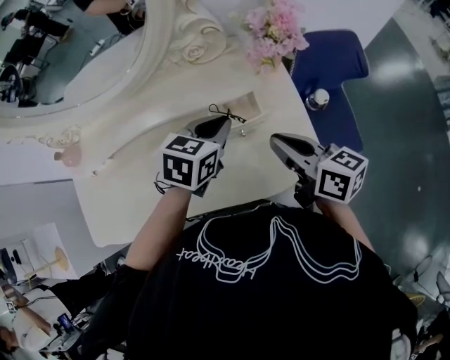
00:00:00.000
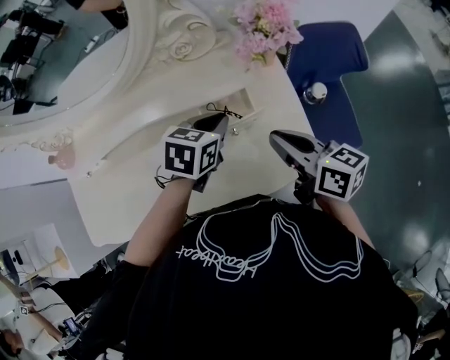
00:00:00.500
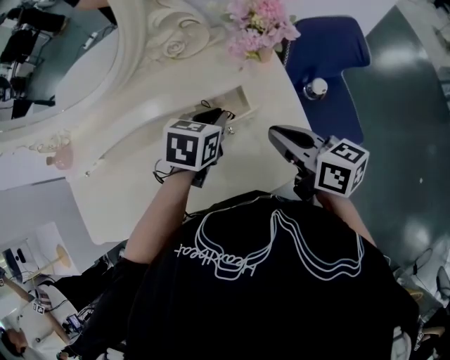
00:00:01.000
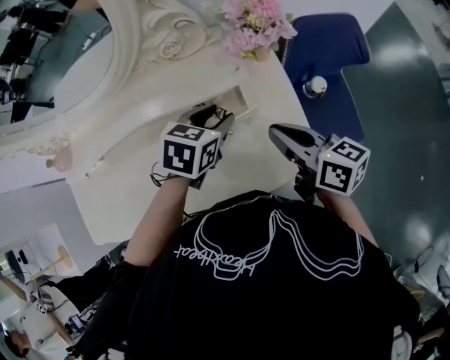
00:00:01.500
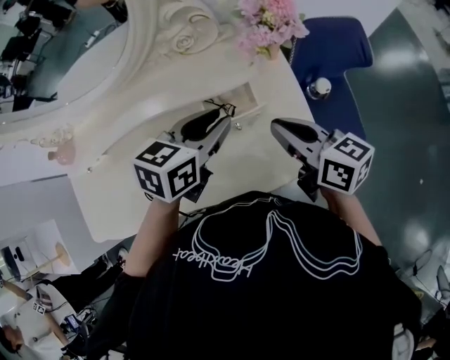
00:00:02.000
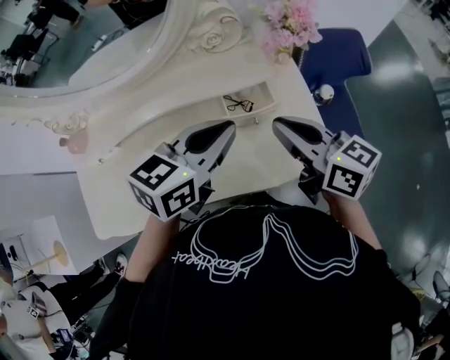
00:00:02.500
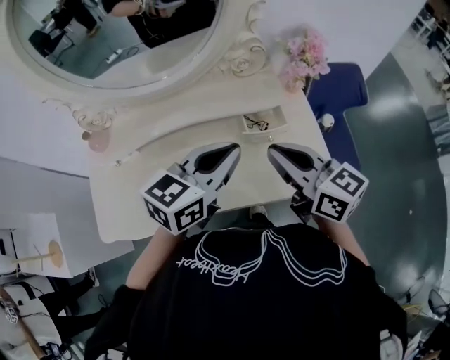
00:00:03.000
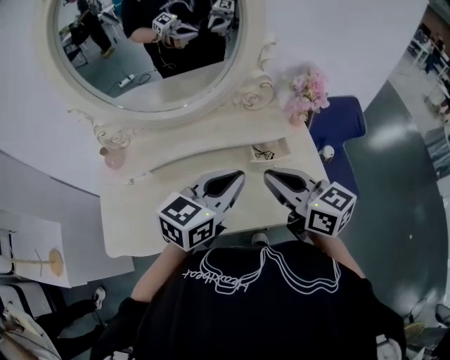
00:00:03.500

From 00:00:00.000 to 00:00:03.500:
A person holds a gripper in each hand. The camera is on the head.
From 00:00:00.000 to 00:00:02.000: The grippers make only small movements.
From 00:00:02.000 to 00:00:03.500: The left gripper heads upward, backward and to the left, covering some 20 cm, and closes, while the right gripper shifts roughly 20 cm to the left, upward and backward.

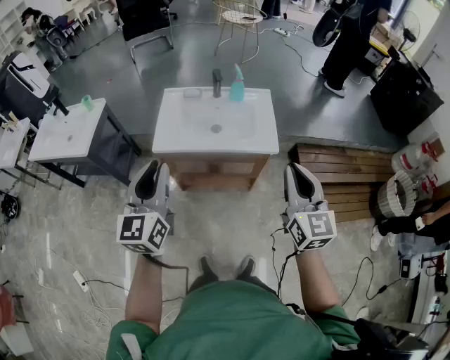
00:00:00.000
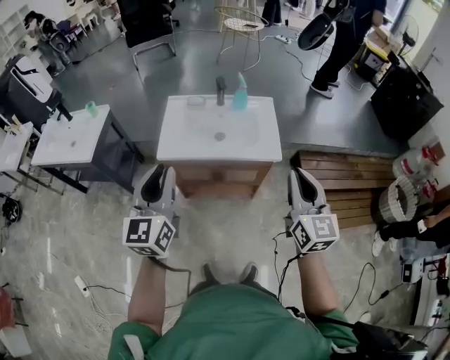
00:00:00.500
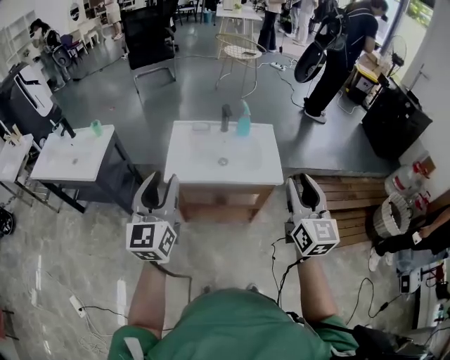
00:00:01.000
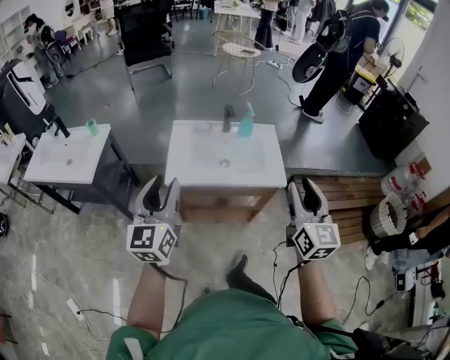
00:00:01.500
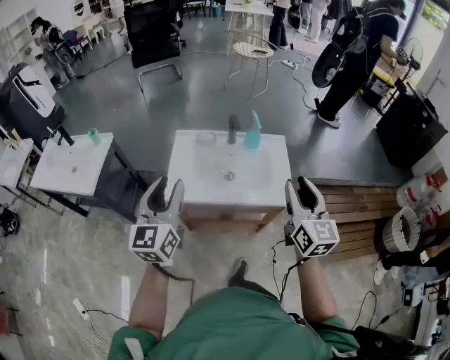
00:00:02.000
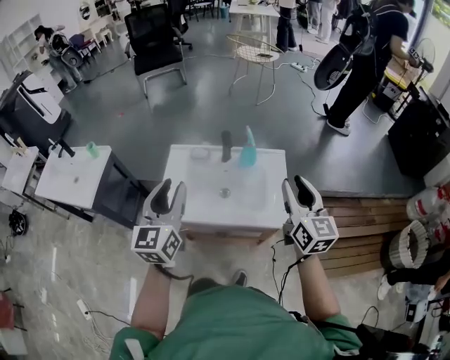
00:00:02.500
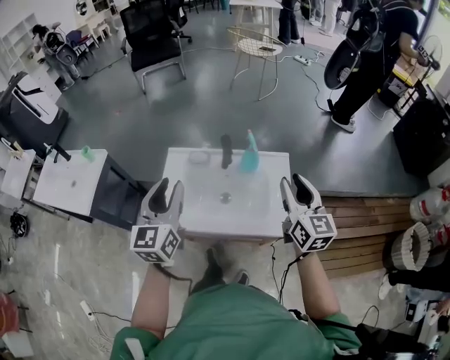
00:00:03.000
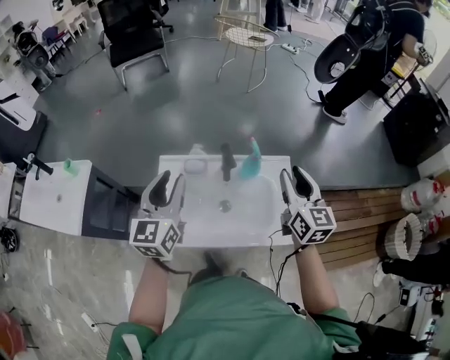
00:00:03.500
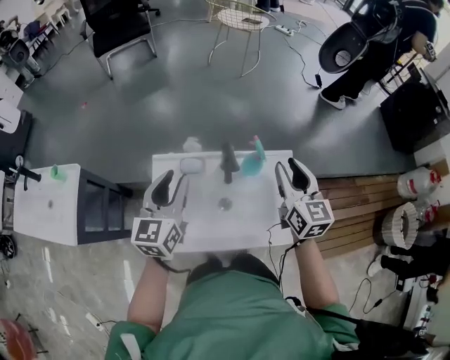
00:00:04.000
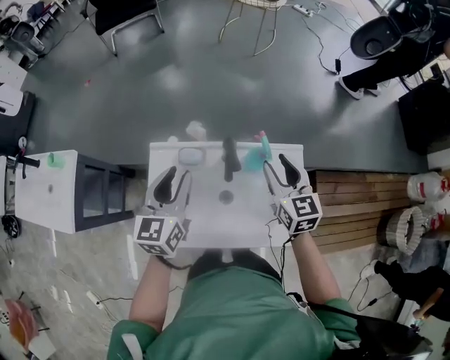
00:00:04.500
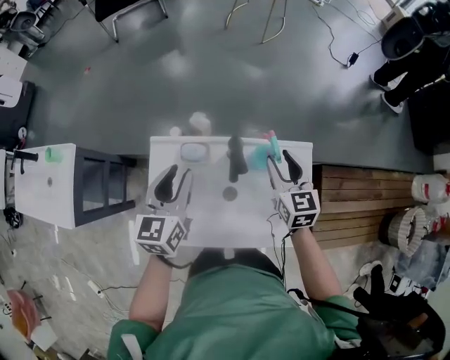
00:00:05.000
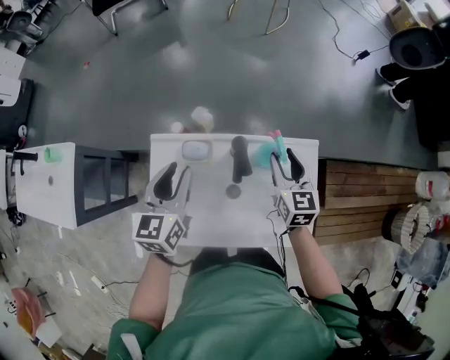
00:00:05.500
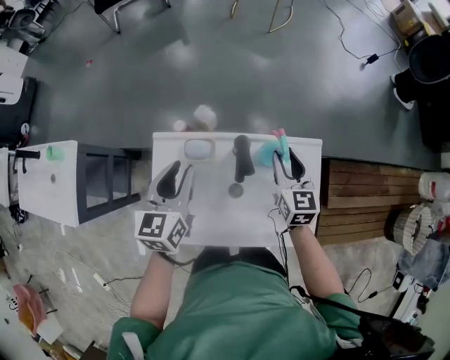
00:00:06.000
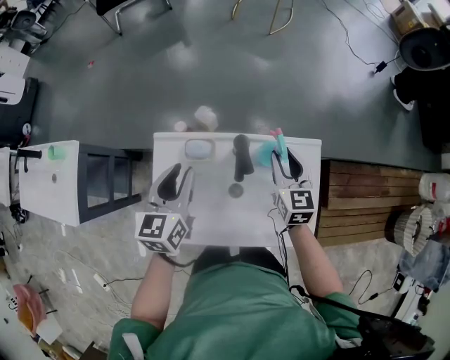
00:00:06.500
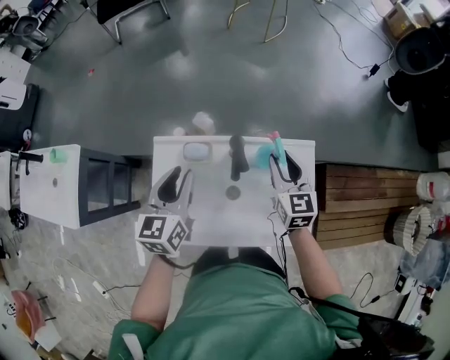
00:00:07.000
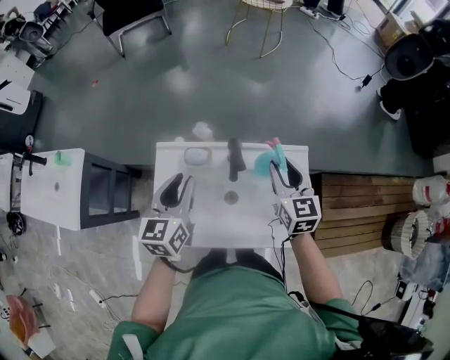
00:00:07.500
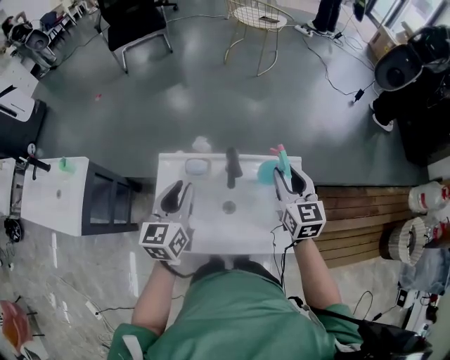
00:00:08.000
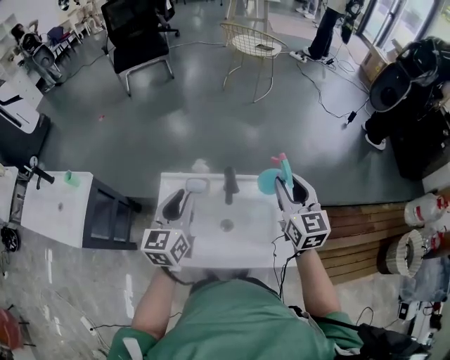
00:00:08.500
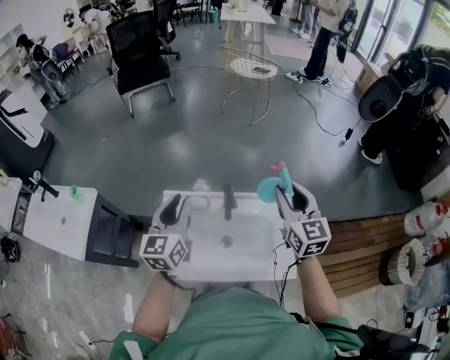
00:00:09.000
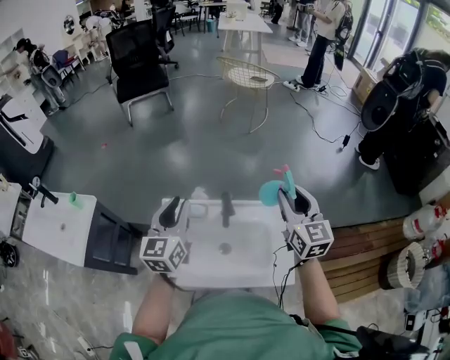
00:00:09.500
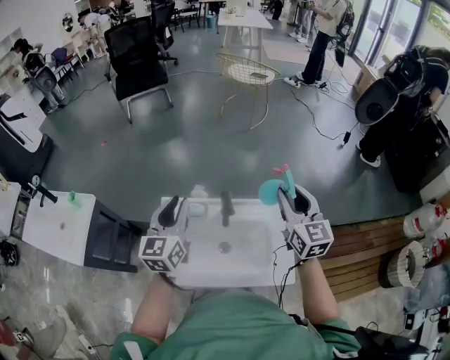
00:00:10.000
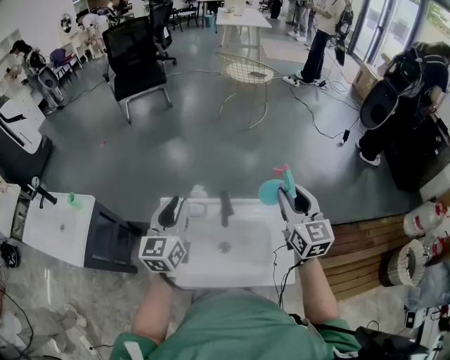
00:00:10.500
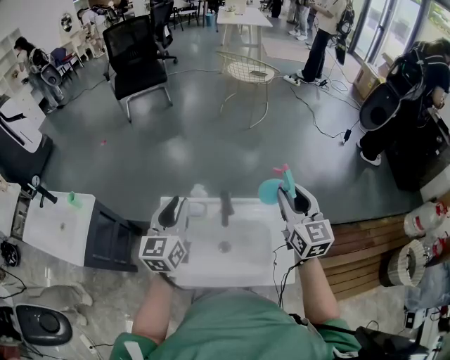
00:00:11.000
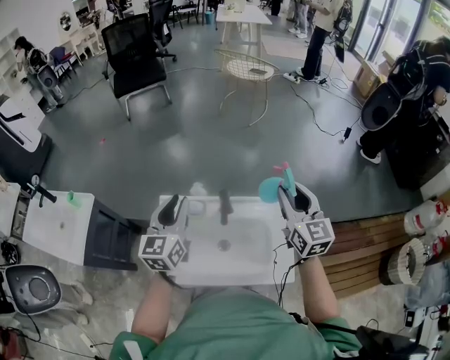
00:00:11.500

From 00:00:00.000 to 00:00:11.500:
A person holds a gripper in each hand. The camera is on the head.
From 00:00:00.000 to 00:00:02.000: Both grippers move forward, approximately 15 cm. The right gripper opens its fingers.
From 00:00:02.000 to 00:00:04.000: Both grippers move forward, roughly 40 cm.
From 00:00:04.000 to 00:00:06.000: The left gripper goes roughly 15 cm downward and forward. The right gripper moves downward and forward, about 20 cm.
From 00:00:06.000 to 00:00:07.500: The right gripper is displaced upward and backward by some 10 cm. Meanwhile the left gripper shifts some 5 cm backward.
From 00:00:07.500 to 00:00:09.500: The two grippers go some 15 cm upward.
From 00:00:09.500 to 00:00:11.500: The grippers make only small movements.

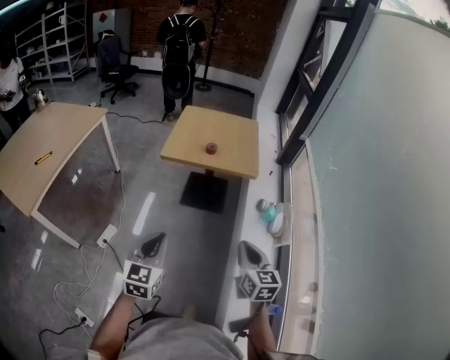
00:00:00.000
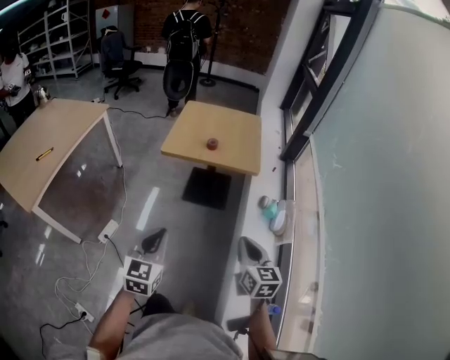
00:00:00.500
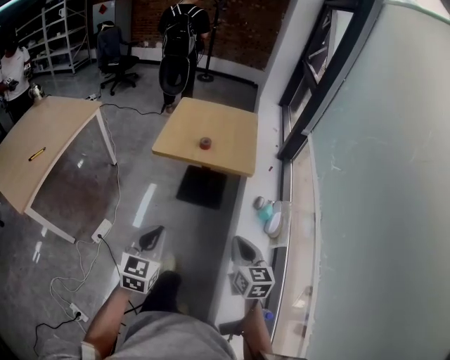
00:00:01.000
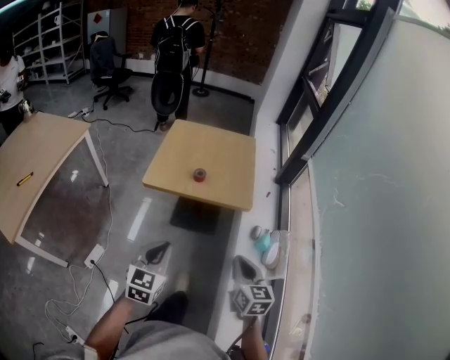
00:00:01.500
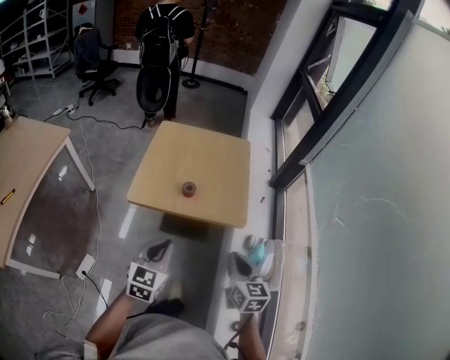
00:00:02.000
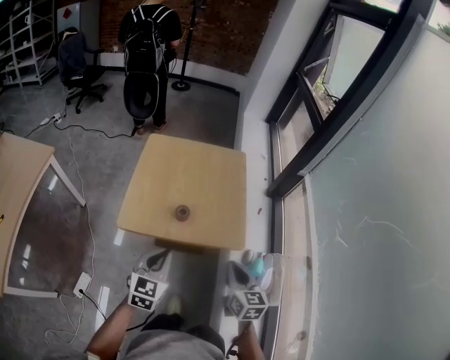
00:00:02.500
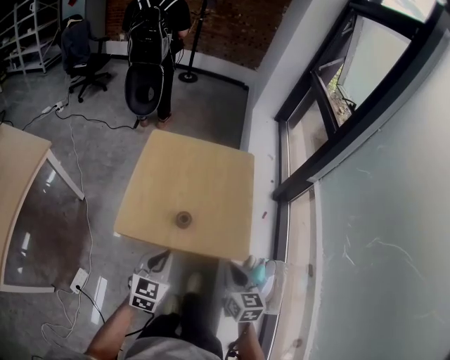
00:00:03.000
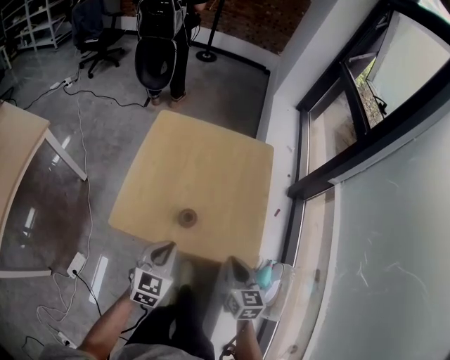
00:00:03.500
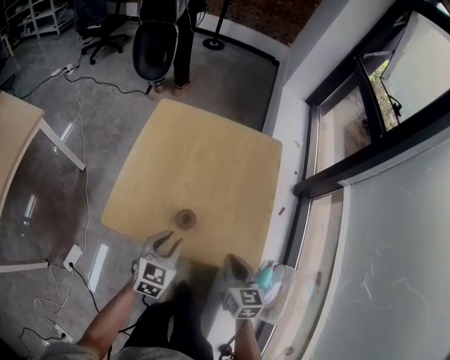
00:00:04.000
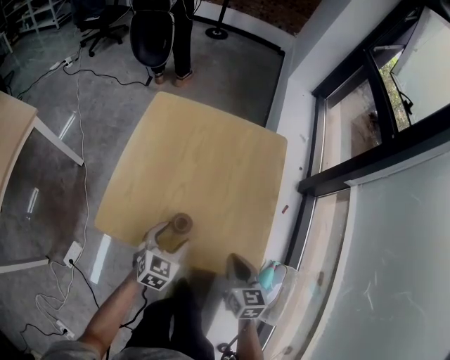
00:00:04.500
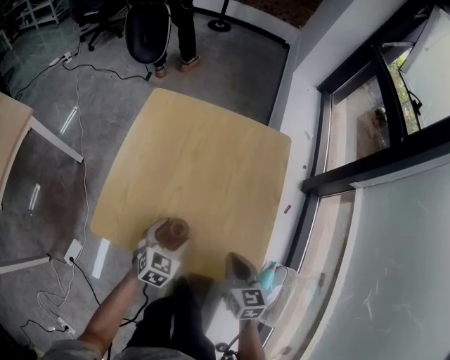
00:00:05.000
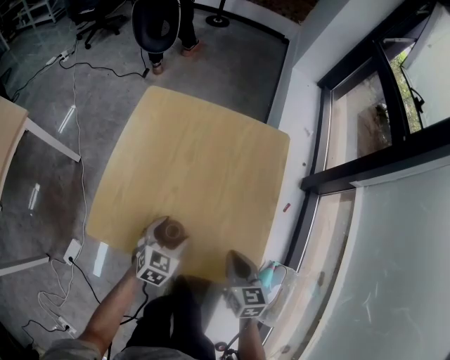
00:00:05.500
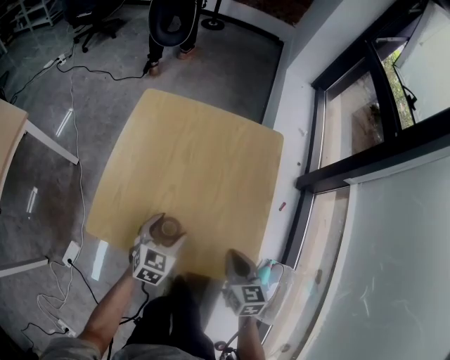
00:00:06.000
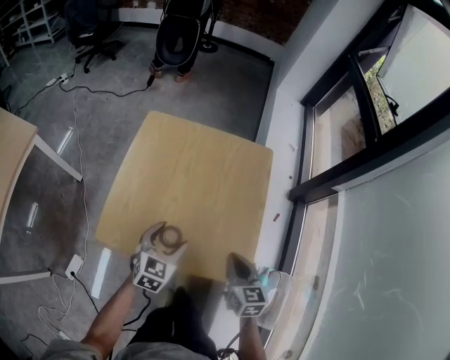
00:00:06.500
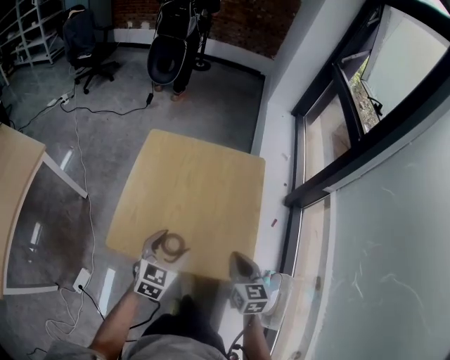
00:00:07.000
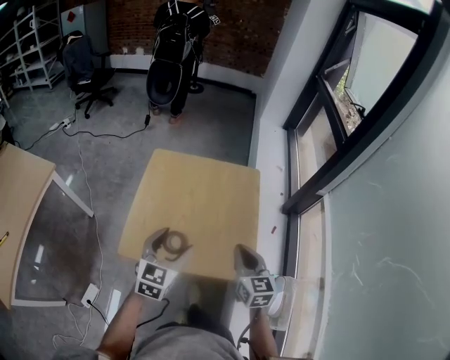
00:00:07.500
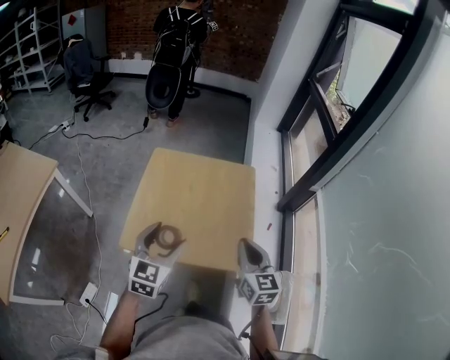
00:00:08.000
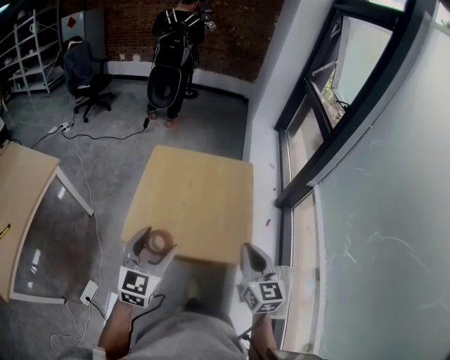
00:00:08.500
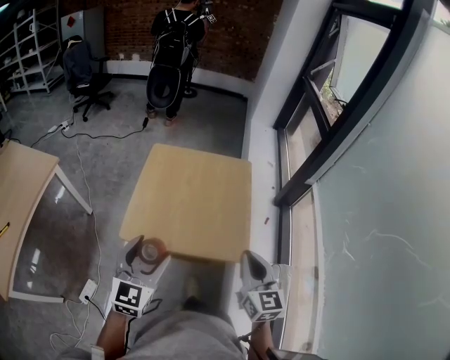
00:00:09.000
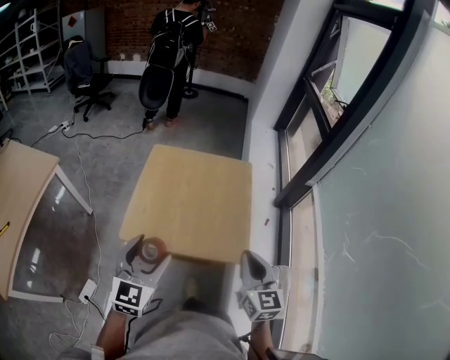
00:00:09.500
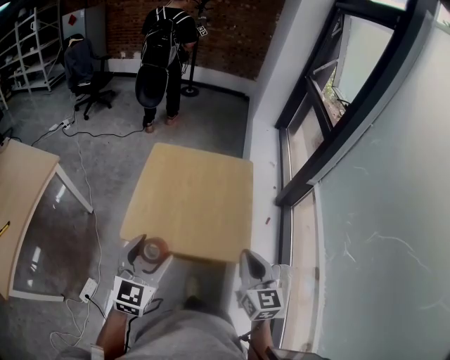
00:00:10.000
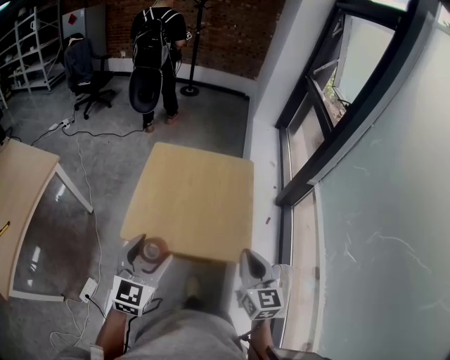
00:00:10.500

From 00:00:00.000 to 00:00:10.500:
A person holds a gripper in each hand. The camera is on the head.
From 00:00:00.000 to 00:00:02.000: The two grippers go some 35 cm forward.
From 00:00:02.000 to 00:00:04.000: Both grippers move forward and downward, about 30 cm.
From 00:00:04.000 to 00:00:06.500: The grippers both shift forward by about 5 cm. The left gripper goes downward and returns, roughly 10 cm each way, and opens up.
From 00:00:06.500 to 00:00:08.500: Both grippers travel together upward and backward, roughly 25 cm. The right gripper rotates roughly 20 degrees. The left gripper turns by roughly 20 degrees.
From 00:00:08.500 to 00:00:10.500: The grippers stay close to where they were, moving slightly.

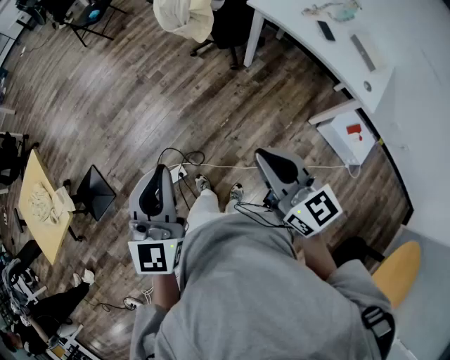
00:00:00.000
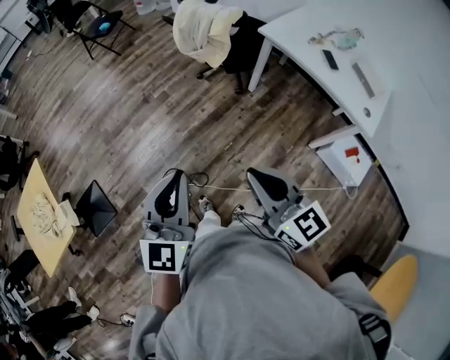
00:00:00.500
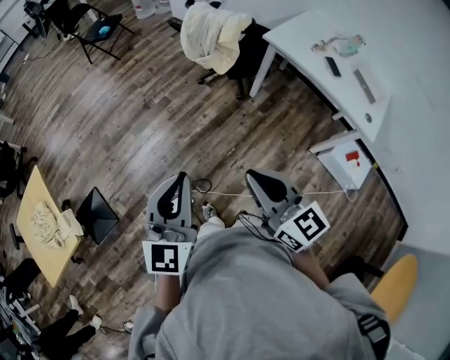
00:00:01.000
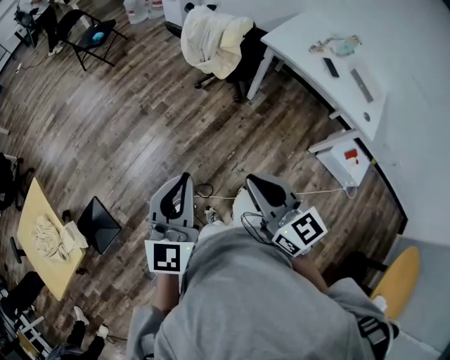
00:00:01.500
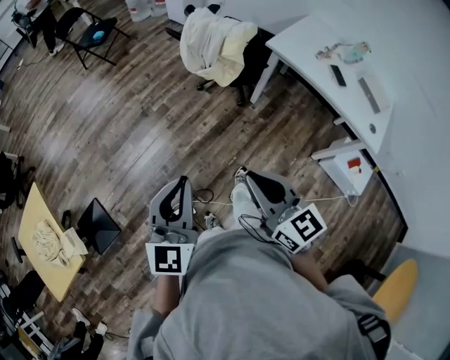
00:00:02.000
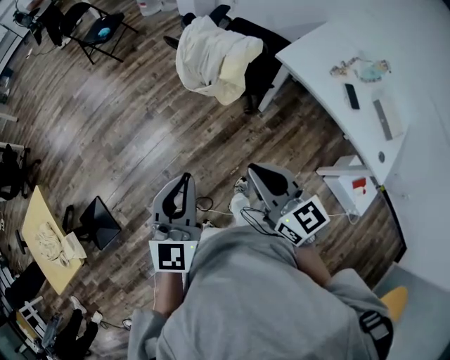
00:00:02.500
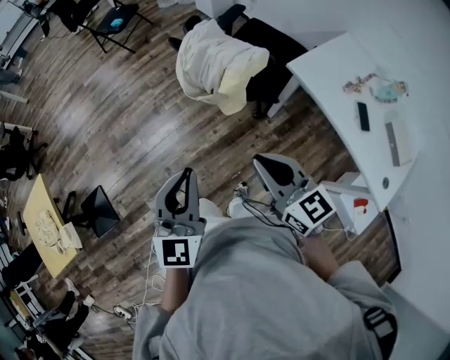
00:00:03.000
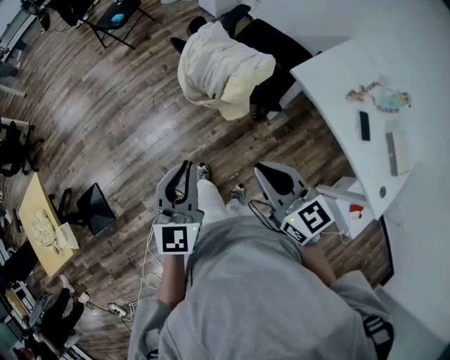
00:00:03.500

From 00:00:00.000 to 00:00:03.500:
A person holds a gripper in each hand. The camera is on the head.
From 00:00:00.000 to 00:00:02.000: The two grippers go about 15 cm forward and to the left.
From 00:00:02.000 to 00:00:03.500: The two grippers go some 25 cm forward and to the right.
